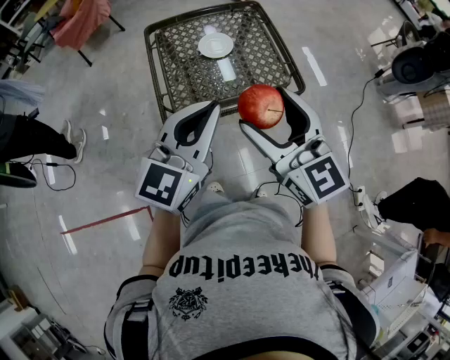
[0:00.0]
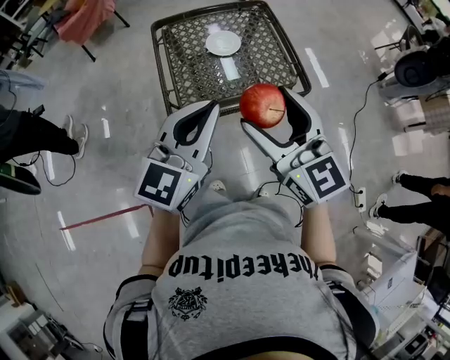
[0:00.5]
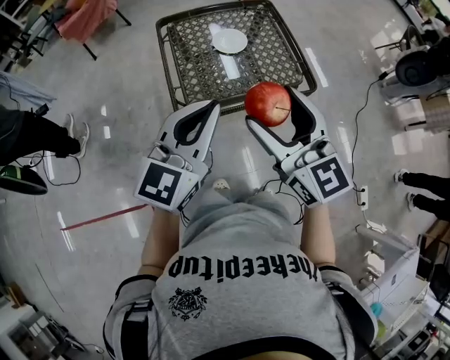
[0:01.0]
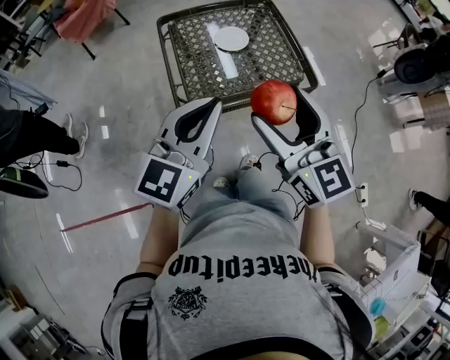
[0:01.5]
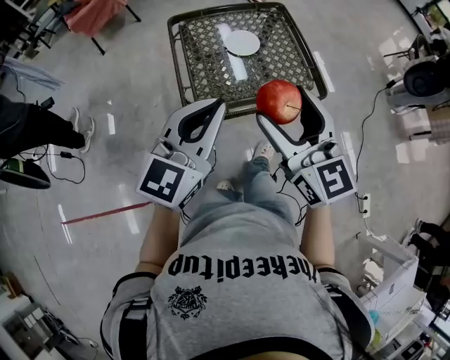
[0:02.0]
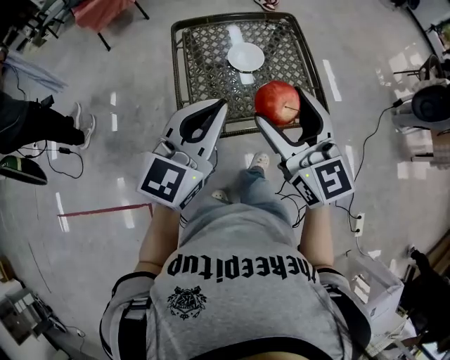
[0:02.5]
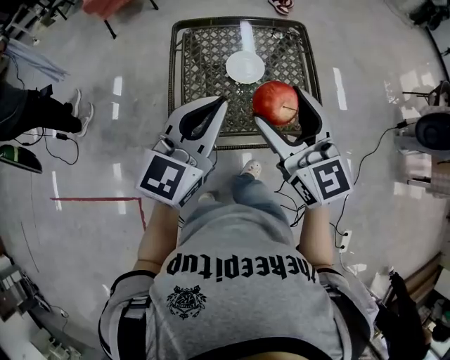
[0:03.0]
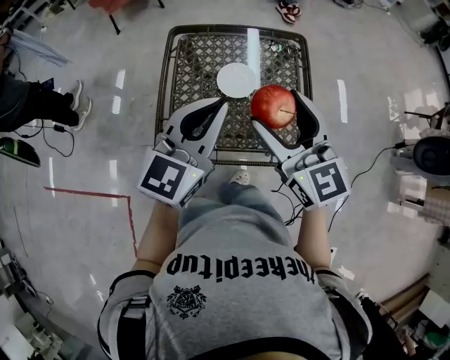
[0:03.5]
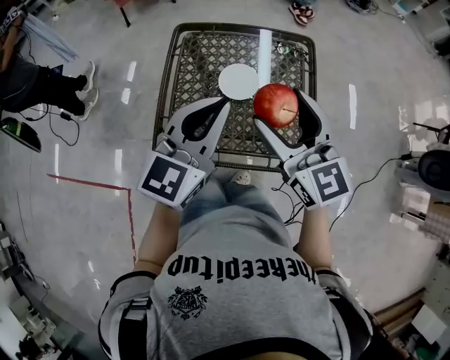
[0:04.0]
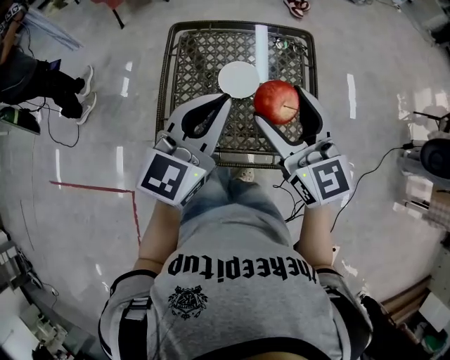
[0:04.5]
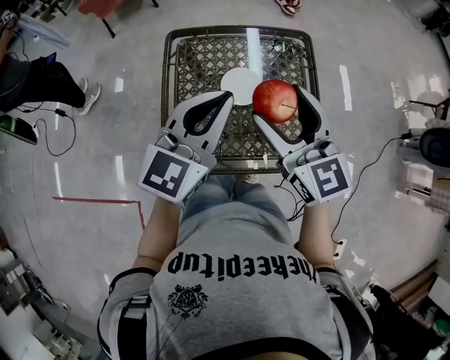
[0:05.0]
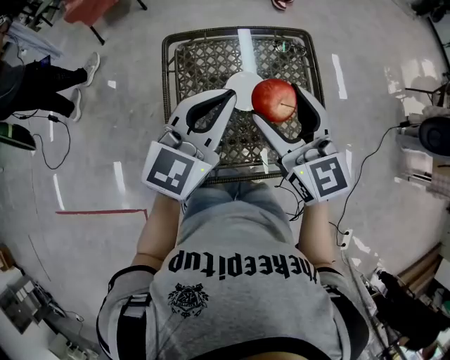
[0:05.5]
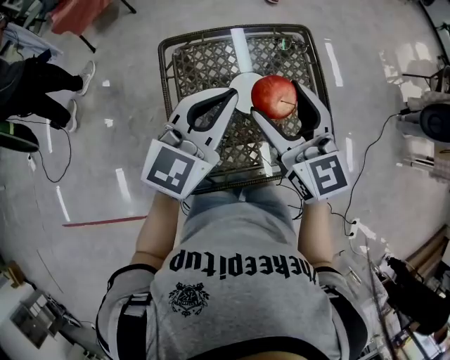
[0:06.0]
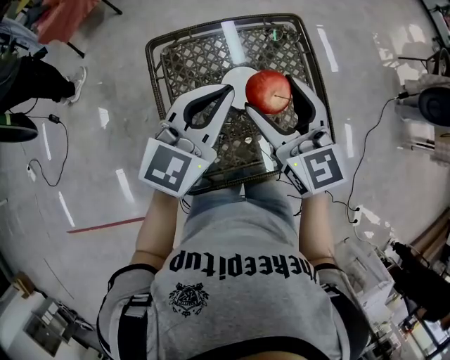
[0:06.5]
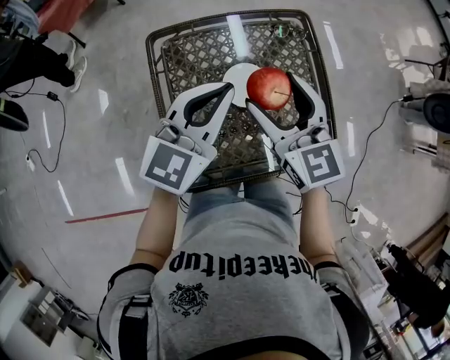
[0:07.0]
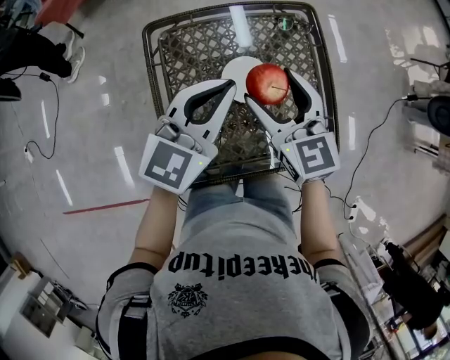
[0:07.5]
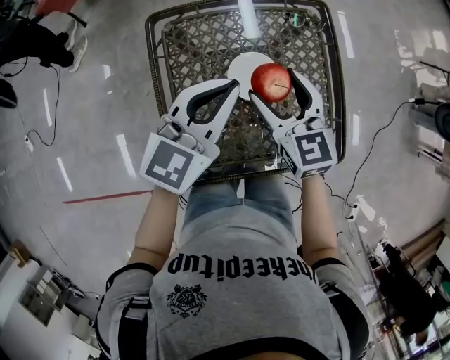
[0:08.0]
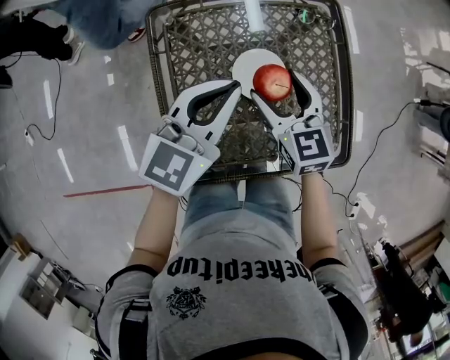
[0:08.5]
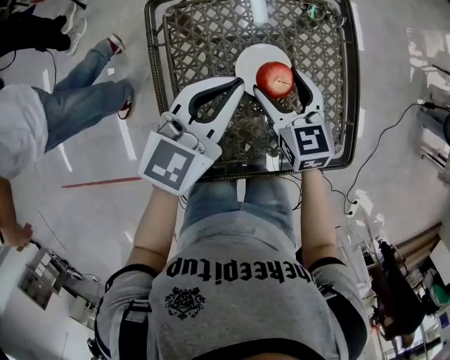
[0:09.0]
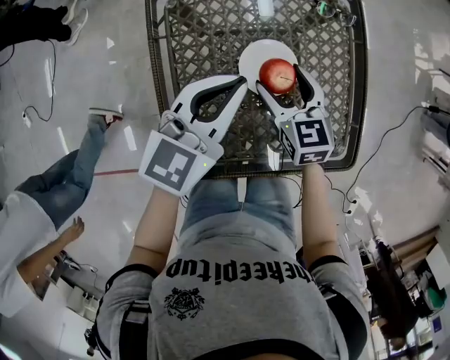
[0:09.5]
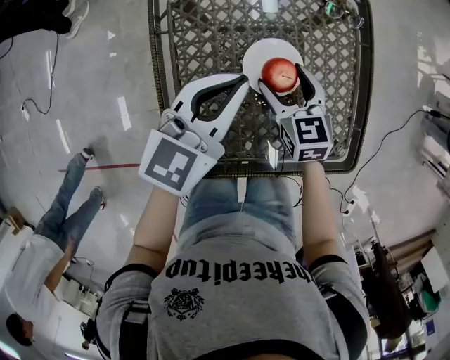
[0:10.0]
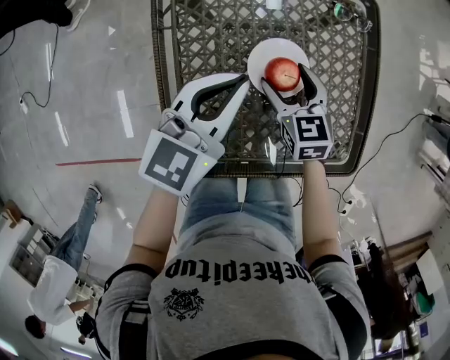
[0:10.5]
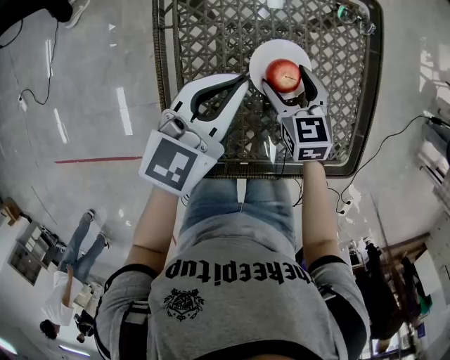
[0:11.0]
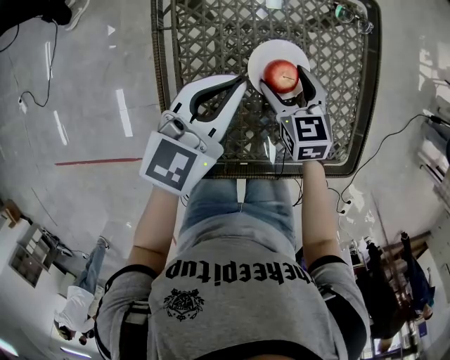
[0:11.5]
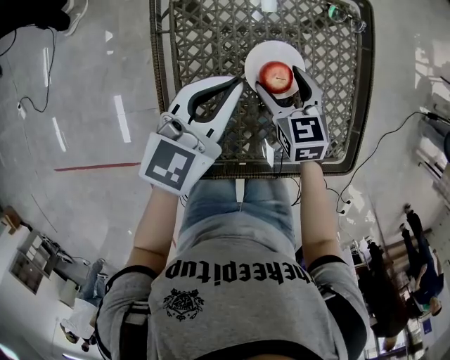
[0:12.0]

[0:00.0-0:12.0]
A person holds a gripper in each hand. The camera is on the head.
0:00.0 to 0:02.0: The left gripper shifts roughly 5 cm to the left.
0:02.0 to 0:04.0: The grippers both shift forward and to the right by about 25 cm. The right gripper swivels some 20 degrees.
0:04.0 to 0:06.0: The right gripper moves to the left and forward, about 15 cm; the left gripper goes about 15 cm forward and to the left.
0:06.0 to 0:08.0: The left gripper goes approximately 10 cm downward. Meanwhile the right gripper is displaced downward by about 15 cm.
0:08.0 to 0:10.0: The right gripper travels downward by about 15 cm; the left gripper shifts roughly 10 cm downward.
0:10.0 to 0:12.0: There are only small adjustments of the grippers.

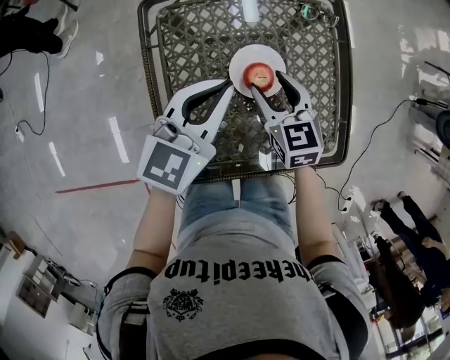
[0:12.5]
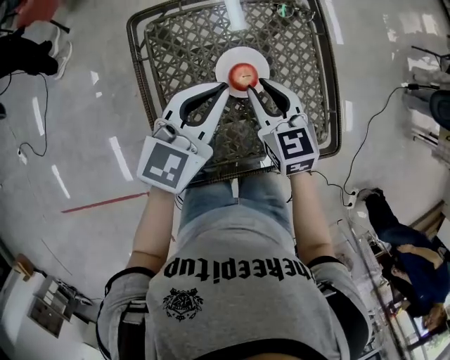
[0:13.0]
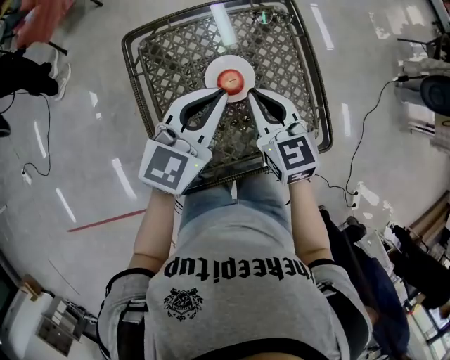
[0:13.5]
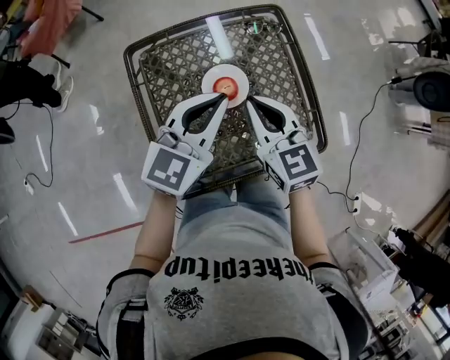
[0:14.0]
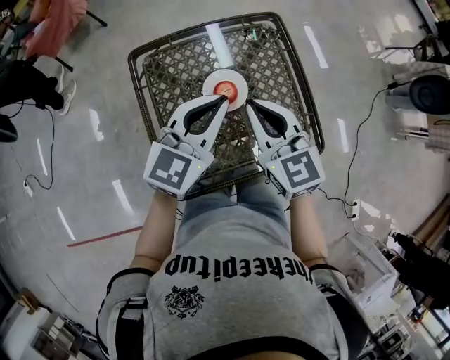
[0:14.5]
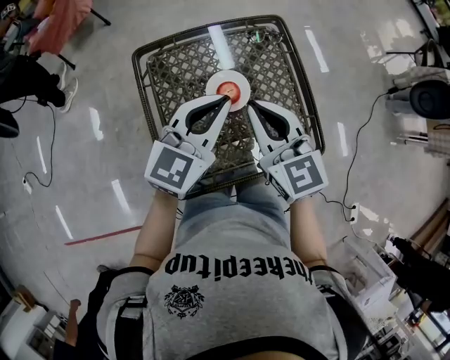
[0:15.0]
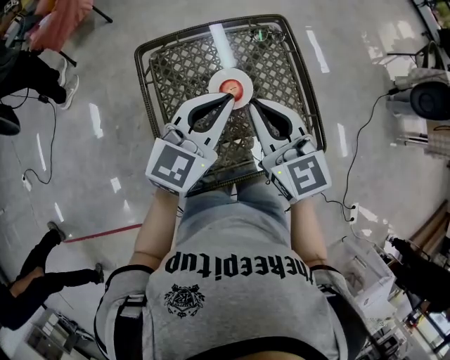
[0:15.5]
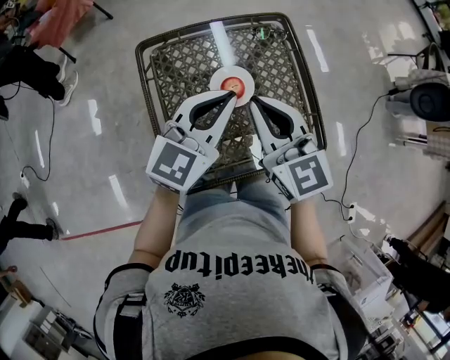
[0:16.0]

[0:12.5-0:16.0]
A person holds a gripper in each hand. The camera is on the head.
0:12.5 to 0:14.5: The left gripper is displaced upward and to the right by roughly 10 cm, while the right gripper is displaced upward by approximately 20 cm, and closes up.
0:14.5 to 0:16.0: There are only small adjustments of the grippers.

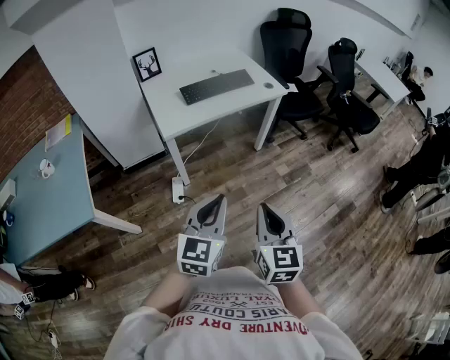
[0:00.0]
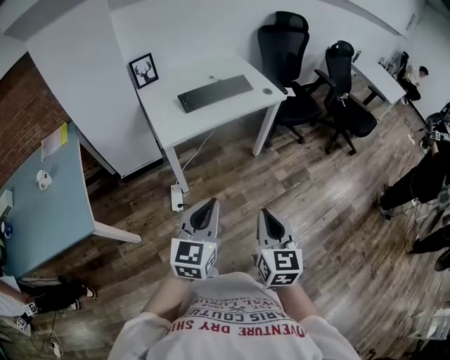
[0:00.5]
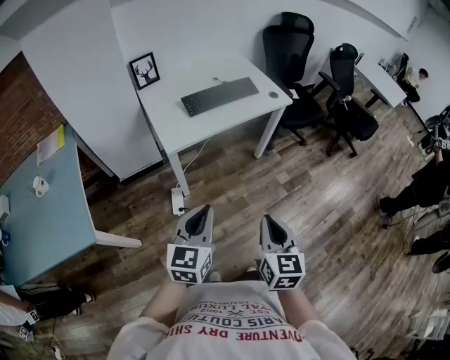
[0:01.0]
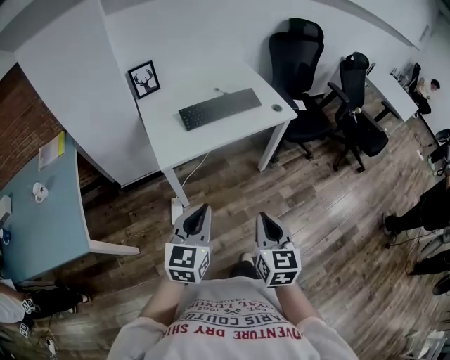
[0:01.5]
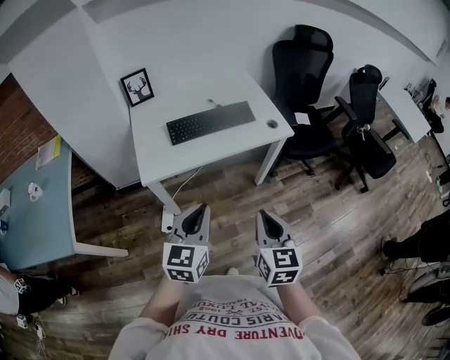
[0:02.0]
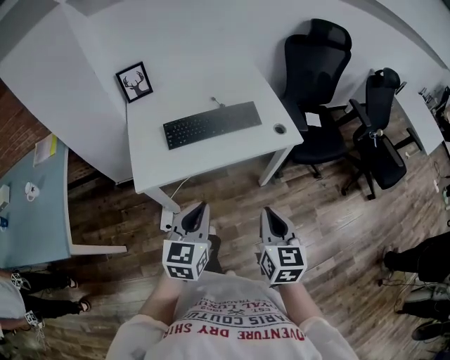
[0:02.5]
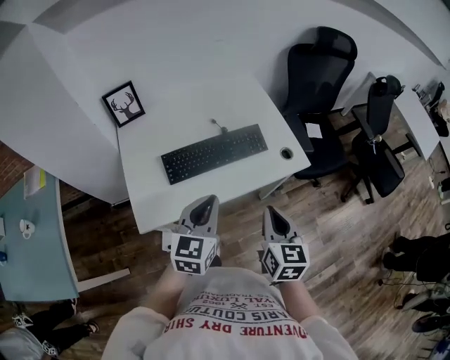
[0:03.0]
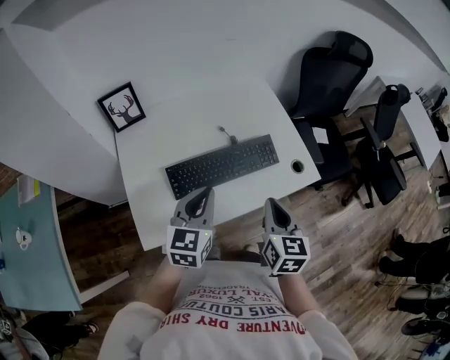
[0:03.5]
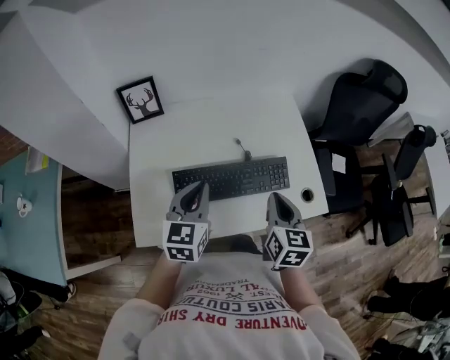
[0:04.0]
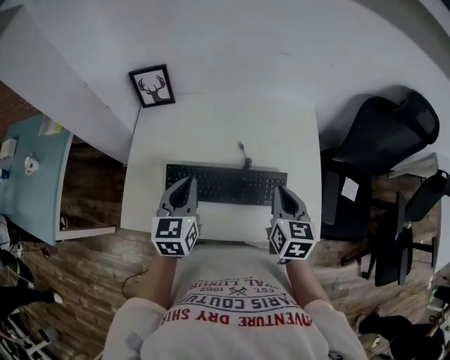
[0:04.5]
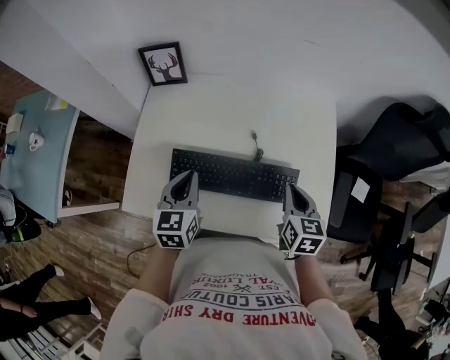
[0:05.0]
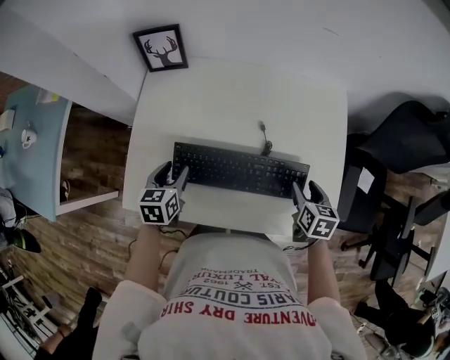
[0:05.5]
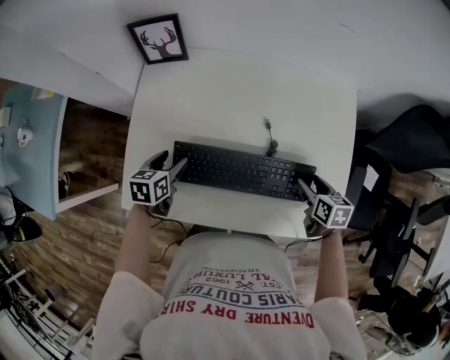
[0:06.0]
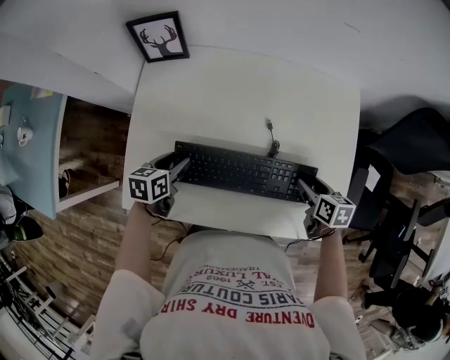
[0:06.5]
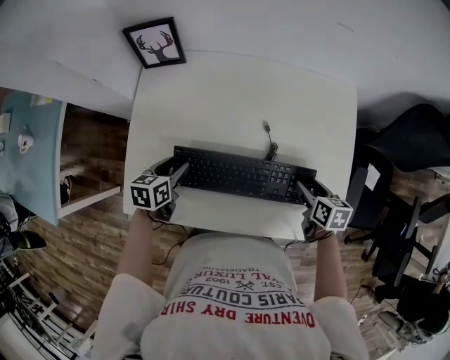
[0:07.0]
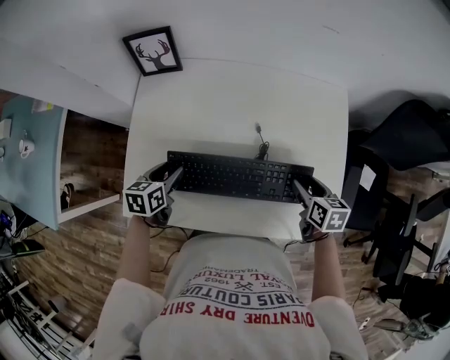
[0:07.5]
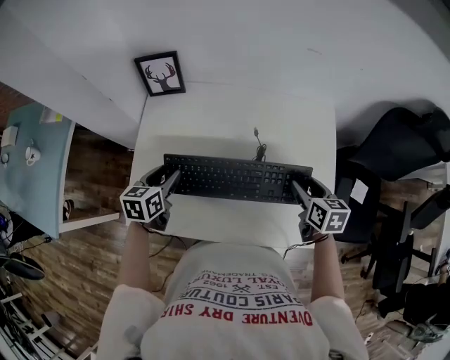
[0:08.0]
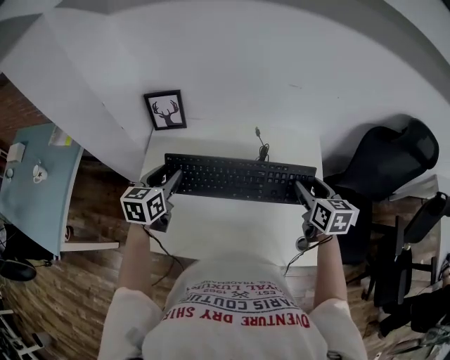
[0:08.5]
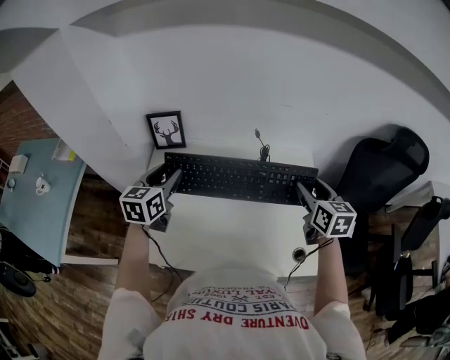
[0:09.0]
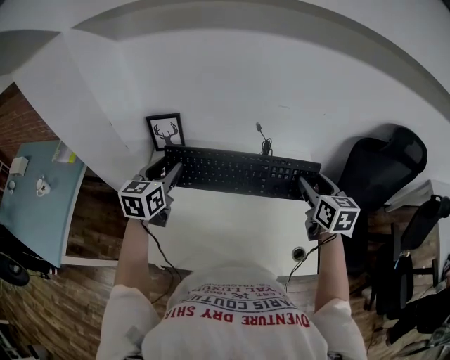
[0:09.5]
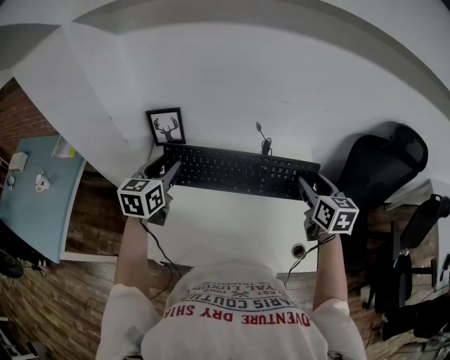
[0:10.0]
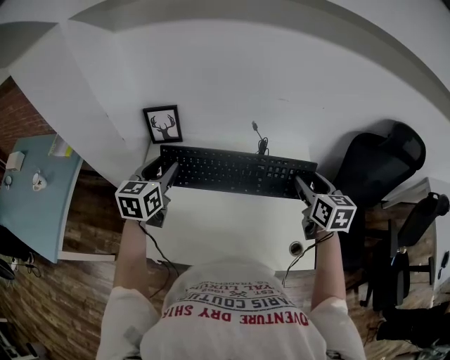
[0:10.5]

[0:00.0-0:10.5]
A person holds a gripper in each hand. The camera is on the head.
0:00.0 to 0:02.0: The grippers both shift forward by some 30 cm.
0:02.0 to 0:04.0: Both grippers are carried forward, some 40 cm.
0:04.0 to 0:06.5: The right gripper heads downward, forward and to the right, covering roughly 25 cm, turns by roughly 40 degrees, and opens up; the left gripper goes approximately 25 cm downward and to the left, rotates some 40 degrees, and opens up.
0:06.5 to 0:08.5: The two grippers go roughly 20 cm upward. The left gripper changes its angle by approximately 30 degrees, while the right gripper rotates some 30 degrees.
0:08.5 to 0:10.5: The grippers both shift upward by roughly 5 cm.

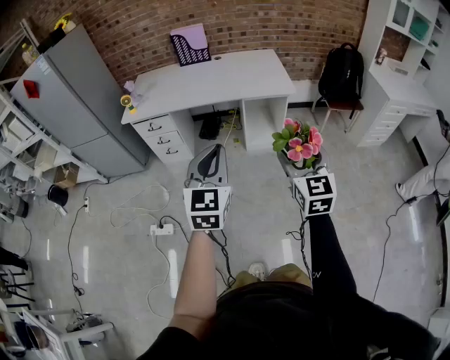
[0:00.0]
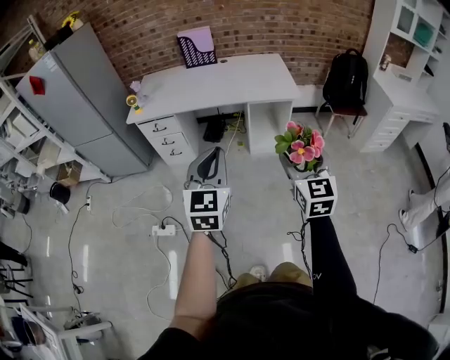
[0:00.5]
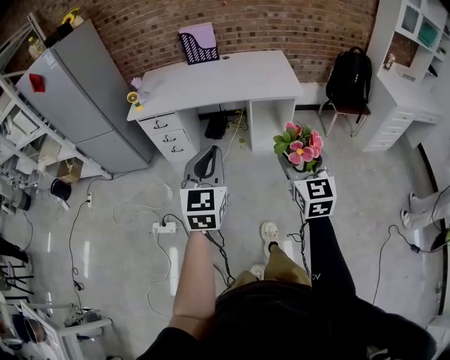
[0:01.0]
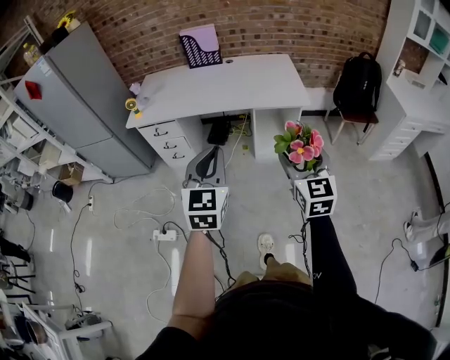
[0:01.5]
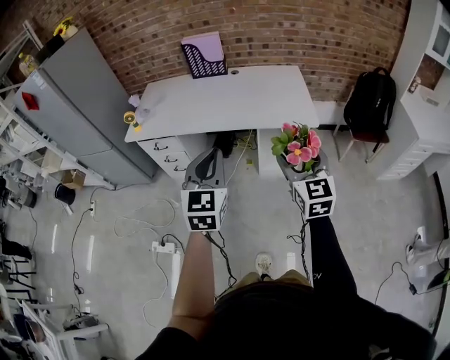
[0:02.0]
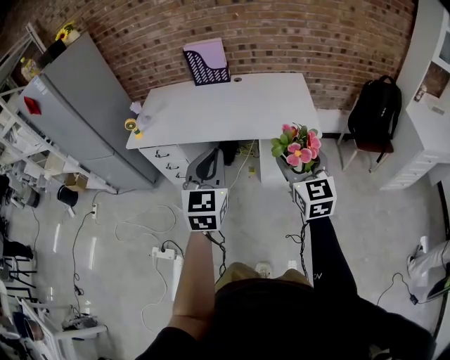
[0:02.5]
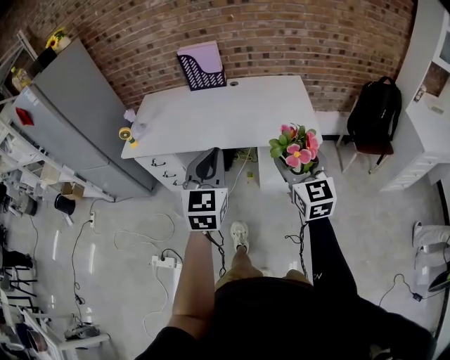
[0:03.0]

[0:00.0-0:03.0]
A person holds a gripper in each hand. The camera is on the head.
0:00.0 to 0:01.5: The grippers both shift forward by roughly 10 cm.
0:01.5 to 0:03.0: The grippers both shift forward by some 25 cm.
